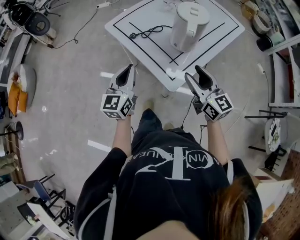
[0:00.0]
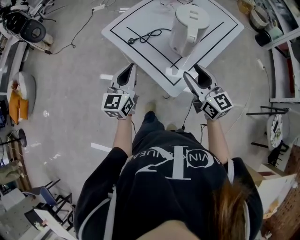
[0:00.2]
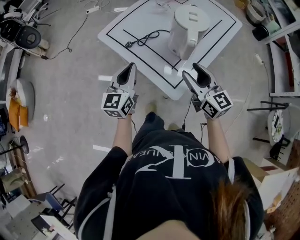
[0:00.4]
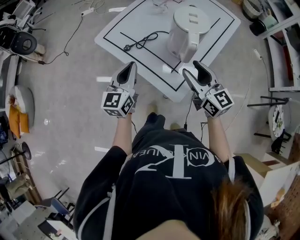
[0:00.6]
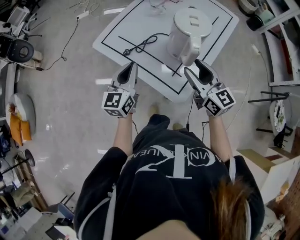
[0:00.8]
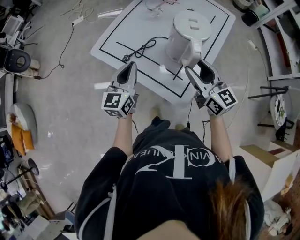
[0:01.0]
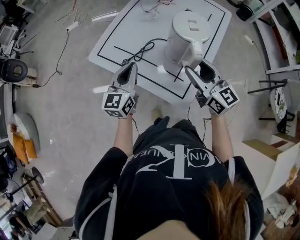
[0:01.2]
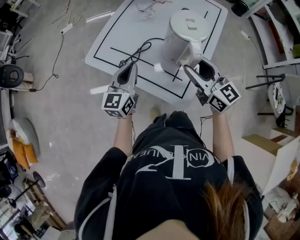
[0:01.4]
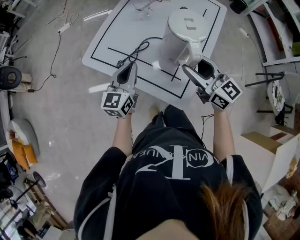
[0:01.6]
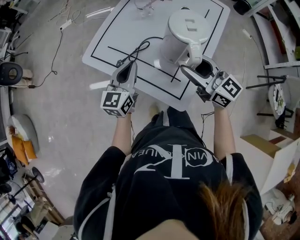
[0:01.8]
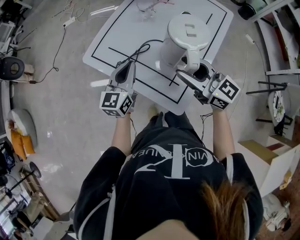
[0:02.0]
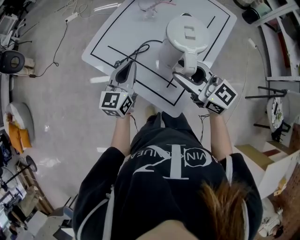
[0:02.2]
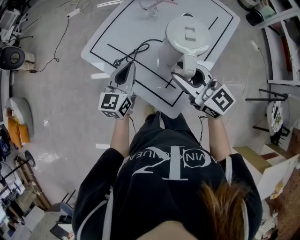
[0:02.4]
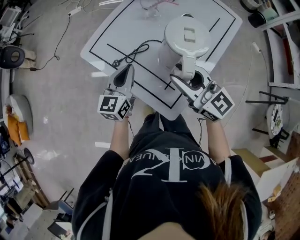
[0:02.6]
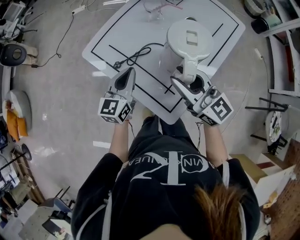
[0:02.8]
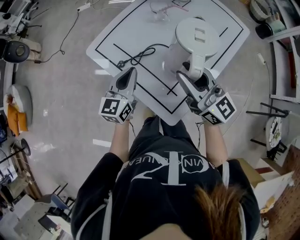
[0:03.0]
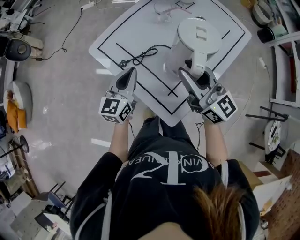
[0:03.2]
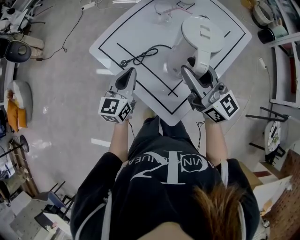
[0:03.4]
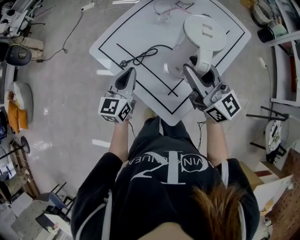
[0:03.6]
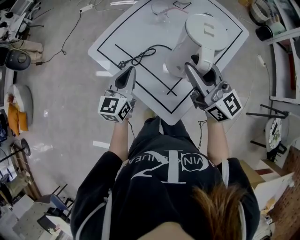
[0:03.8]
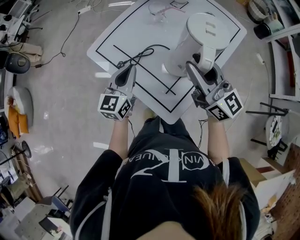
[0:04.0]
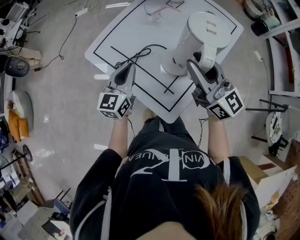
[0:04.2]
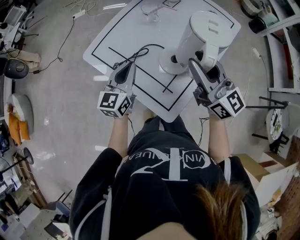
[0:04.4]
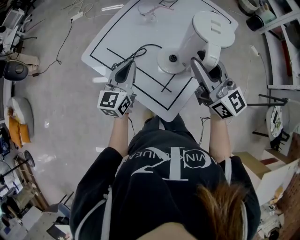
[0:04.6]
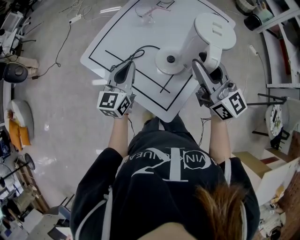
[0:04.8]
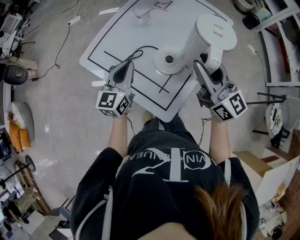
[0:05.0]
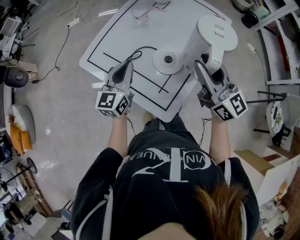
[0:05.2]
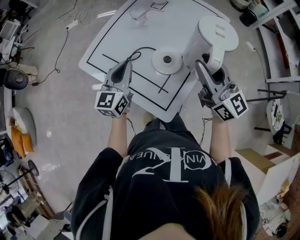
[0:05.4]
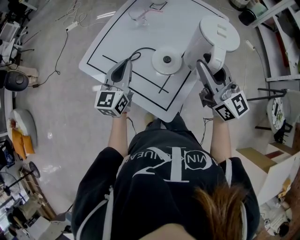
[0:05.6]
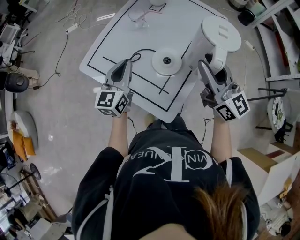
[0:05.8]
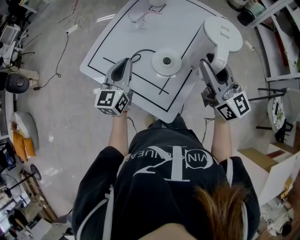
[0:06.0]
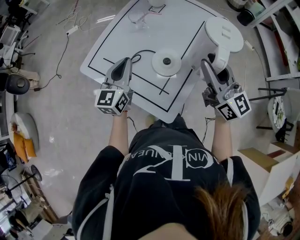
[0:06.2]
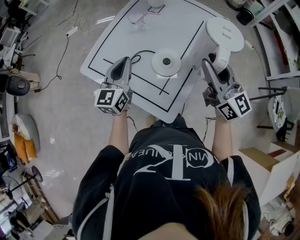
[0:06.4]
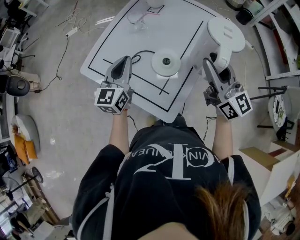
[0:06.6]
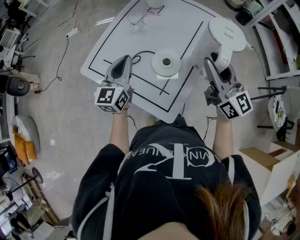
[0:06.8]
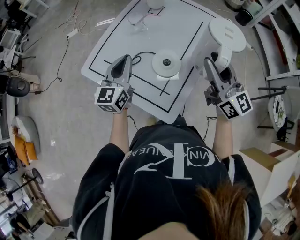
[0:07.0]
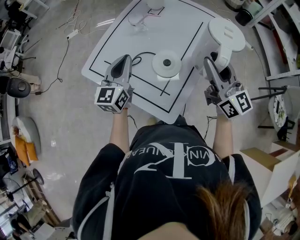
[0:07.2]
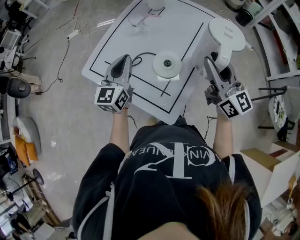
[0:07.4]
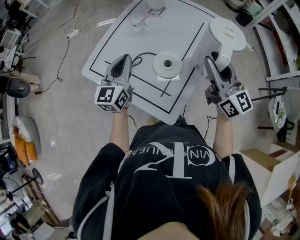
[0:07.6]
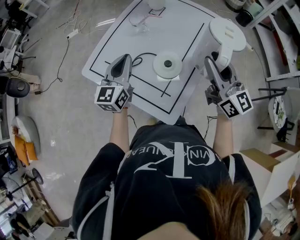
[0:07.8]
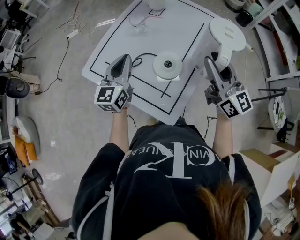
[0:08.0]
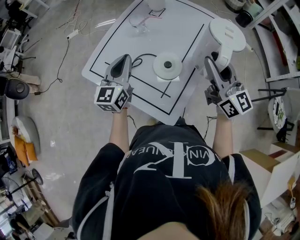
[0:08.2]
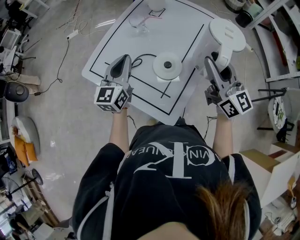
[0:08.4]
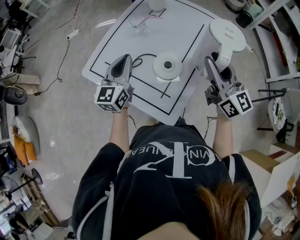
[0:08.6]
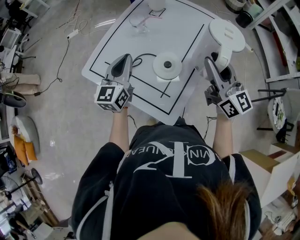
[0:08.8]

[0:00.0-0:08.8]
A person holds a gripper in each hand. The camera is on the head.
0:00.0 to 0:01.4: Both grippers travel together forward, about 15 cm. The left gripper turns by roughly 20 degrees.
0:01.4 to 0:03.0: The right gripper changes place by approximately 5 cm, and swivels about 20 degrees.
0:03.0 to 0:04.4: The right gripper is displaced to the right by about 5 cm.
0:04.4 to 0:05.8: The right gripper heads to the right, covering about 5 cm.
0:05.8 to 0:07.4: The grippers stay close to where they were, moving slightly.
0:07.4 to 0:08.8: The two grippers keep their place.

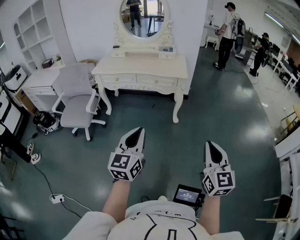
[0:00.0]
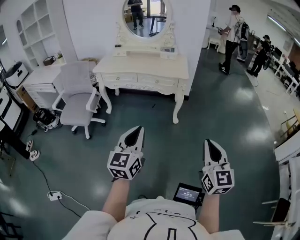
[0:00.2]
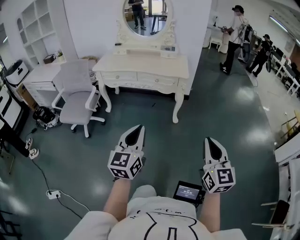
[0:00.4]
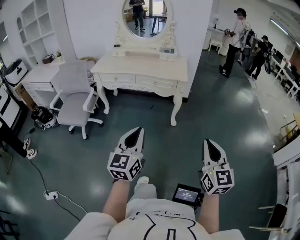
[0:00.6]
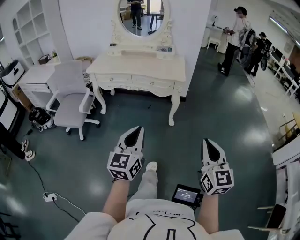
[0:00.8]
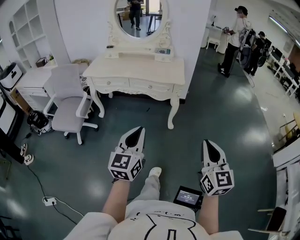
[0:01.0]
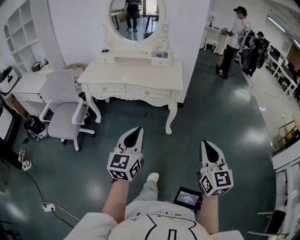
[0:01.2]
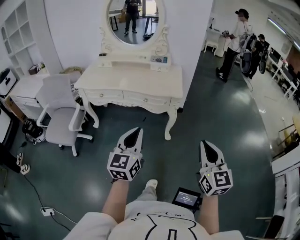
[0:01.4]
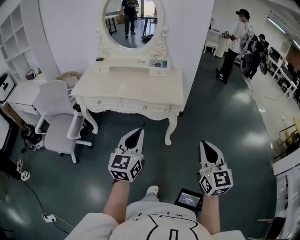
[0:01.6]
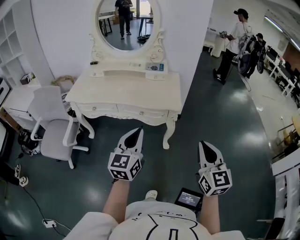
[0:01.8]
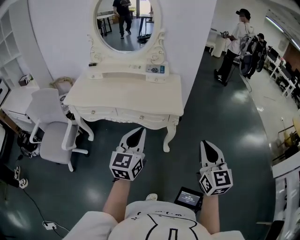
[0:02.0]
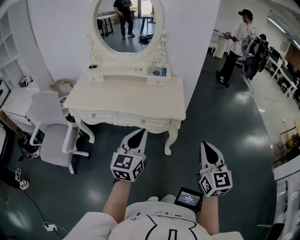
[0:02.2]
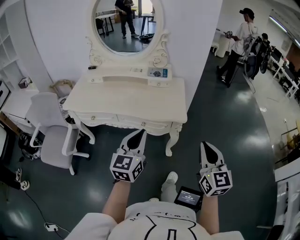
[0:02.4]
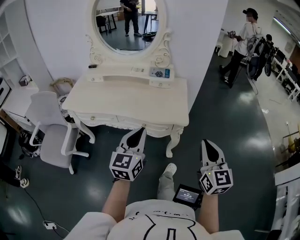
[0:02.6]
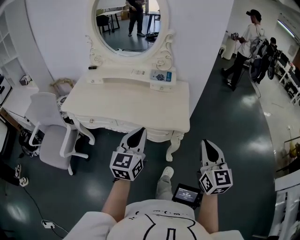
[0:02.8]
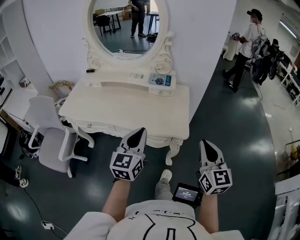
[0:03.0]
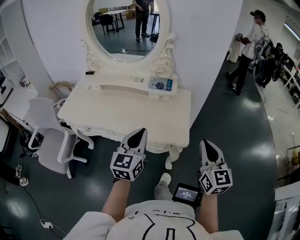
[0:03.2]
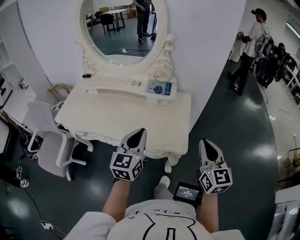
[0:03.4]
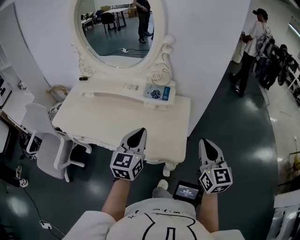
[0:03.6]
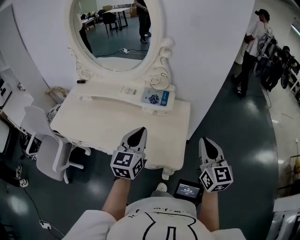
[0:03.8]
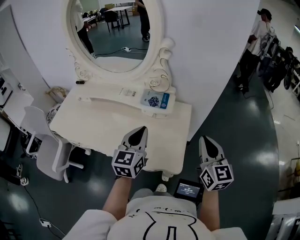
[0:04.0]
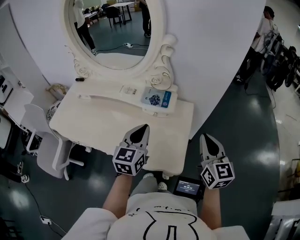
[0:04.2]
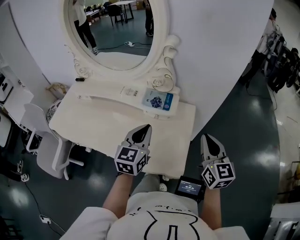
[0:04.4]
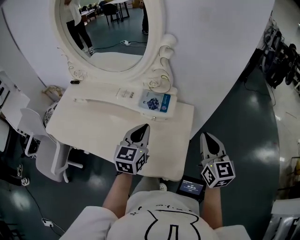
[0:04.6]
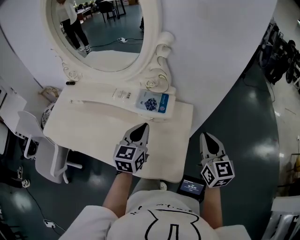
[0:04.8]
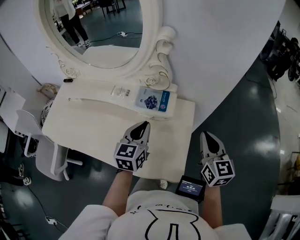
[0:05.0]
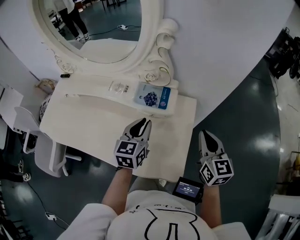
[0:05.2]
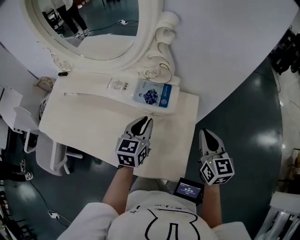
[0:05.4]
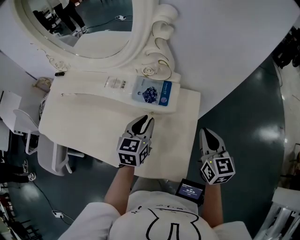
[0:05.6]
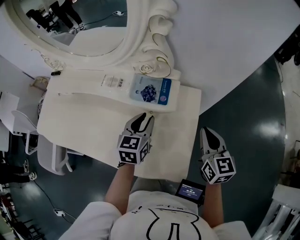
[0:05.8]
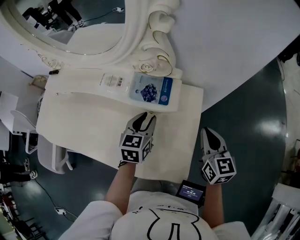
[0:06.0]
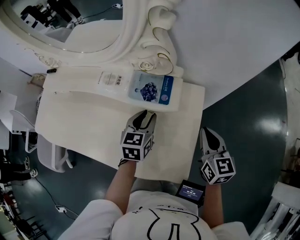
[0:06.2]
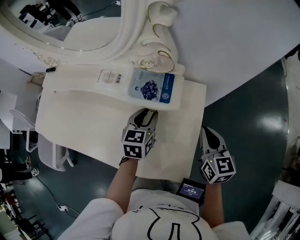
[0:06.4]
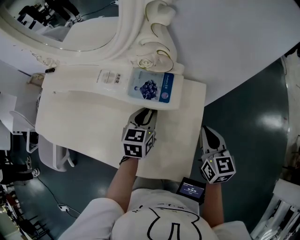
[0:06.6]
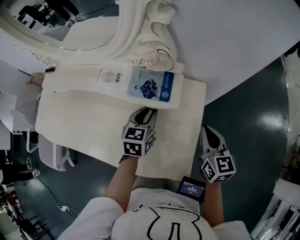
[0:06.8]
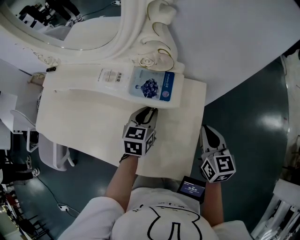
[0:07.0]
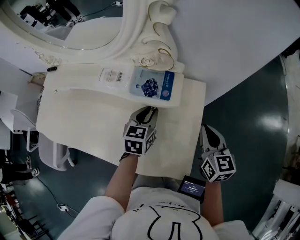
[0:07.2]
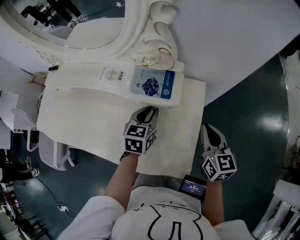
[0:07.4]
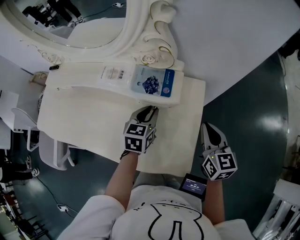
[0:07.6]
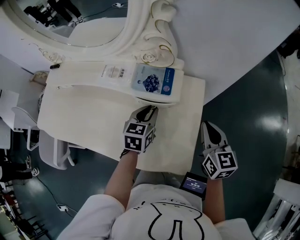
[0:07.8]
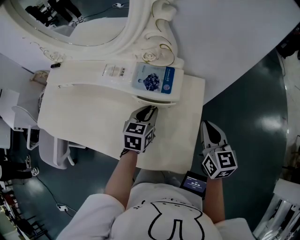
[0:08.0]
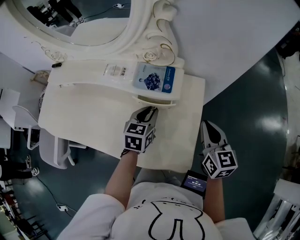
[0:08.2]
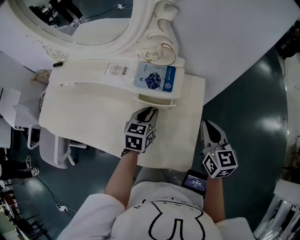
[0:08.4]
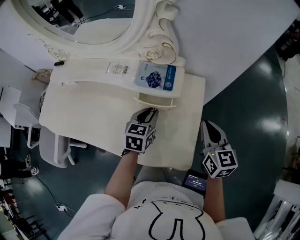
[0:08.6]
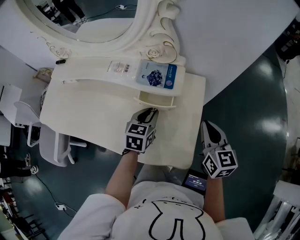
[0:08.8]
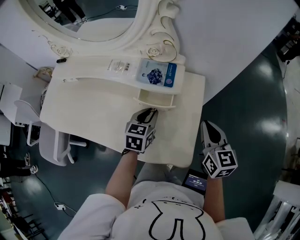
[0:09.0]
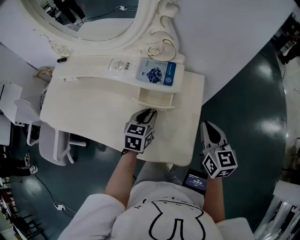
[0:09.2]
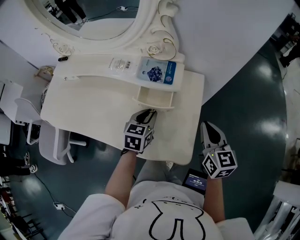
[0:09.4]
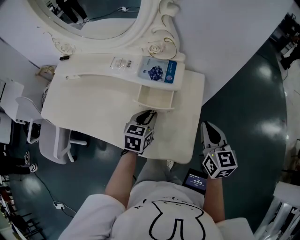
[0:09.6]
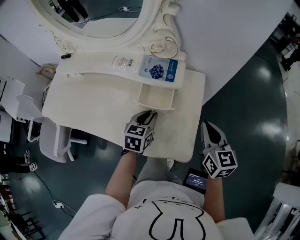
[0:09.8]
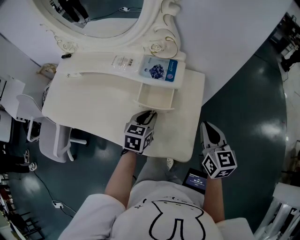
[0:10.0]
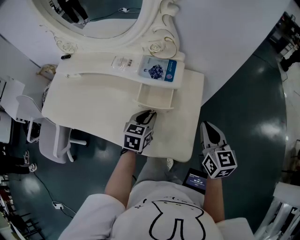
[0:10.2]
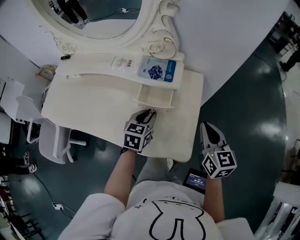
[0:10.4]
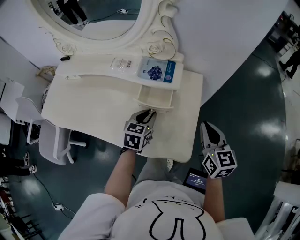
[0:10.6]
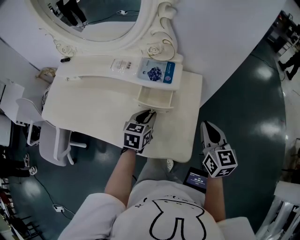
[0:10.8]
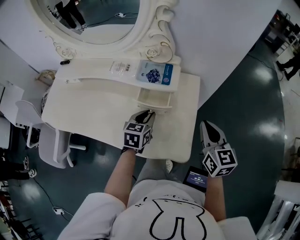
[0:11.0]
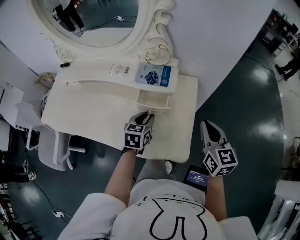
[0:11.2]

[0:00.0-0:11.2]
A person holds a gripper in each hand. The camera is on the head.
0:00.0 to 0:01.6: The grippers both shift forward by roughly 30 cm.
0:01.6 to 0:03.2: The grippers both shift forward by about 35 cm.
0:03.2 to 0:04.8: The two grippers go approximately 25 cm forward.
0:04.8 to 0:06.4: The grippers both shift downward and forward by approximately 15 cm. The left gripper opens.
0:06.4 to 0:08.0: The grippers stay close to where they were, moving slightly.
0:08.0 to 0:09.6: Both grippers move backward, roughly 5 cm.
0:09.6 to 0:11.2: The grippers make only small movements.

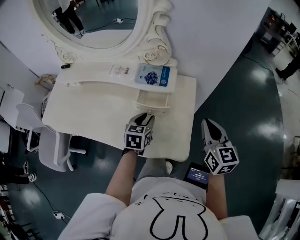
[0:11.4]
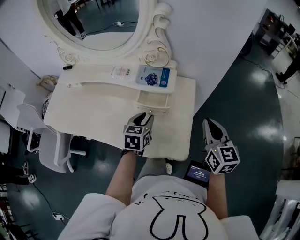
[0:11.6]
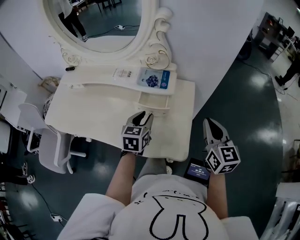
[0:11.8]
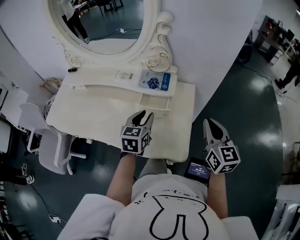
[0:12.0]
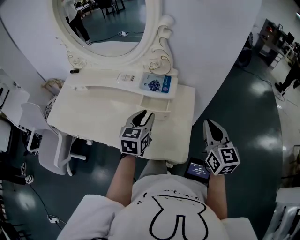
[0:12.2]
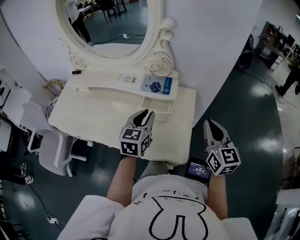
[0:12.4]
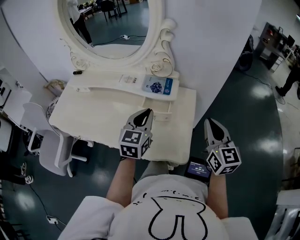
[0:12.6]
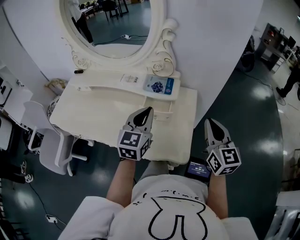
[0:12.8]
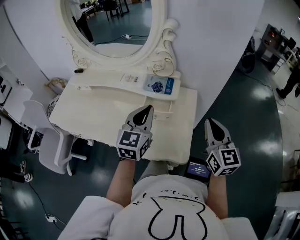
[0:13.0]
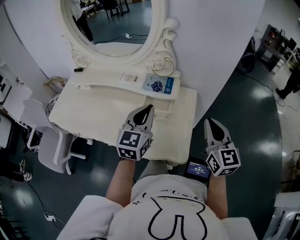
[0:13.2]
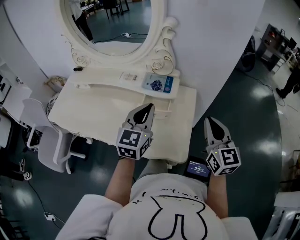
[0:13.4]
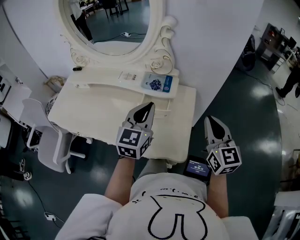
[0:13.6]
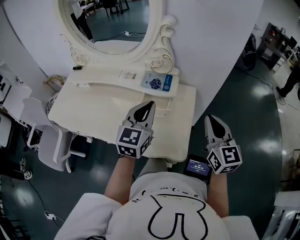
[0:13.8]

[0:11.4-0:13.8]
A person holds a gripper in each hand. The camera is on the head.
0:11.4 to 0:12.6: The left gripper heads upward, covering approximately 15 cm, swivels roughly 20 degrees, and closes, while the right gripper heads upward, covering about 5 cm.
0:12.6 to 0:13.8: The grippers move only a little.

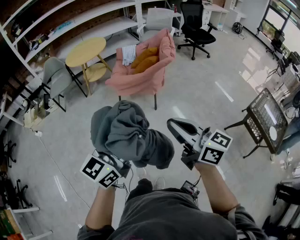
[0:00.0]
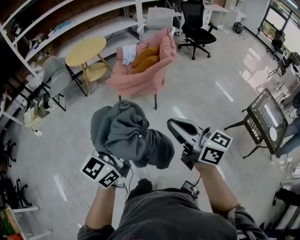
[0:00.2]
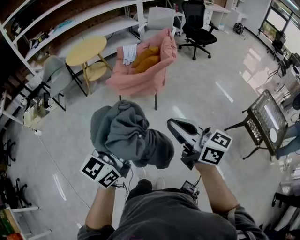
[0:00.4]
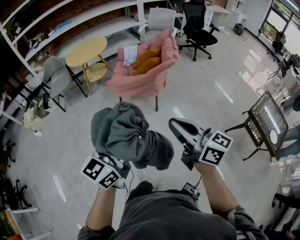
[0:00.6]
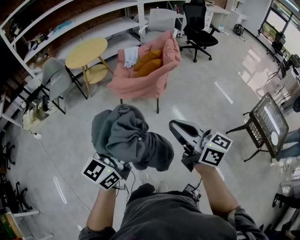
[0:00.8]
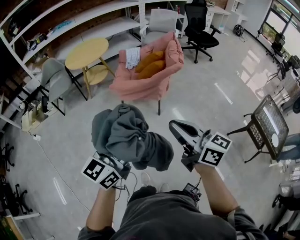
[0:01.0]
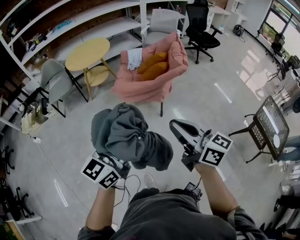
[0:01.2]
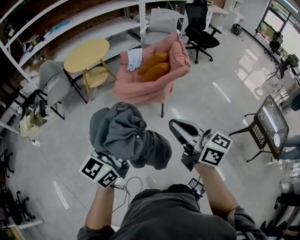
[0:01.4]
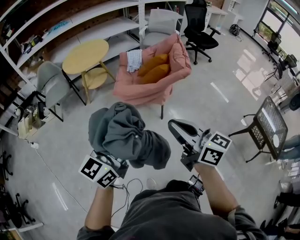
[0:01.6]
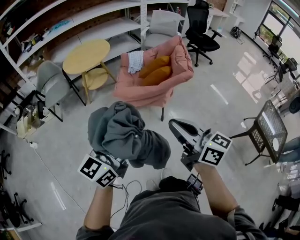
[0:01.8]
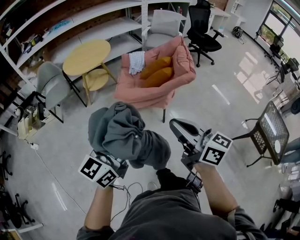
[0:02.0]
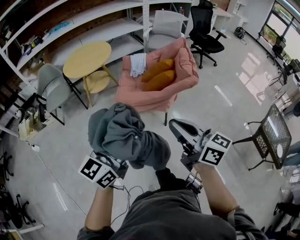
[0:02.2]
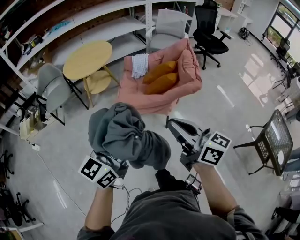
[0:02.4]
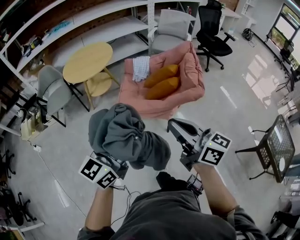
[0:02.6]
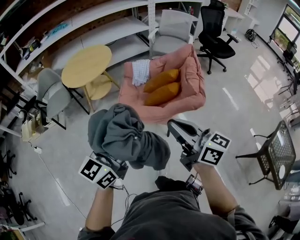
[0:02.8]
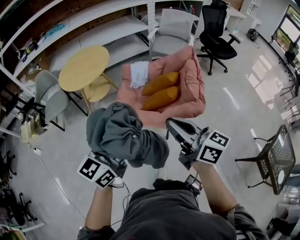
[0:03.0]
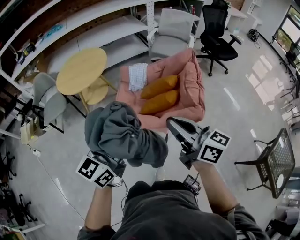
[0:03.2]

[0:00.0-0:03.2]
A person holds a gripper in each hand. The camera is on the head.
0:00.0 to 0:01.6: Both grippers move forward and to the left, about 25 cm.
0:01.6 to 0:03.2: Both grippers move forward, some 35 cm.
